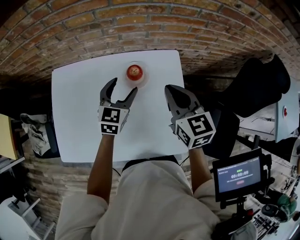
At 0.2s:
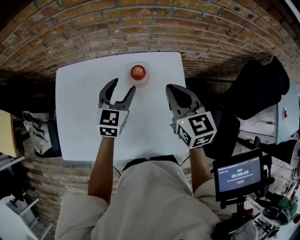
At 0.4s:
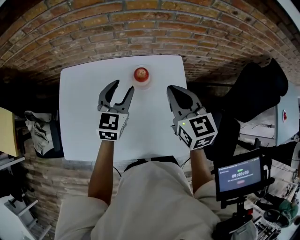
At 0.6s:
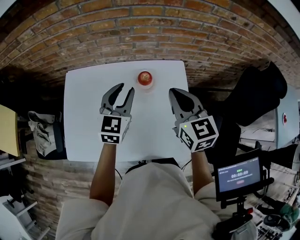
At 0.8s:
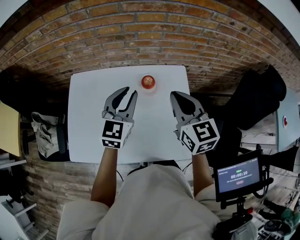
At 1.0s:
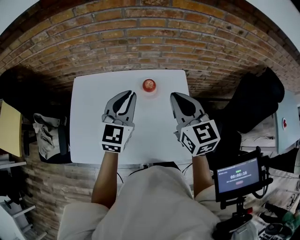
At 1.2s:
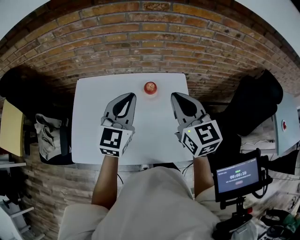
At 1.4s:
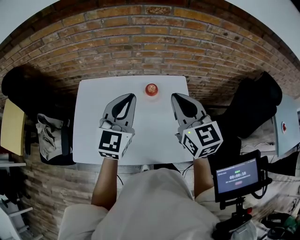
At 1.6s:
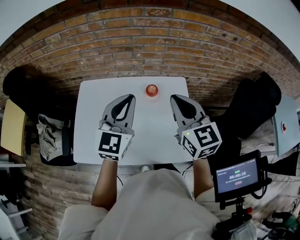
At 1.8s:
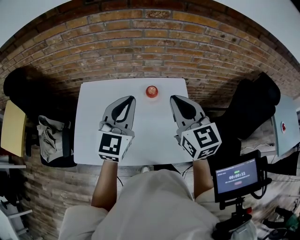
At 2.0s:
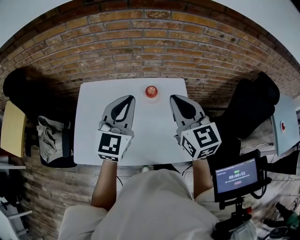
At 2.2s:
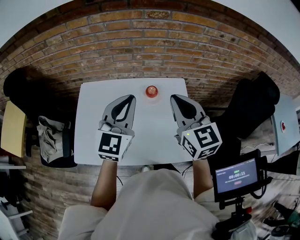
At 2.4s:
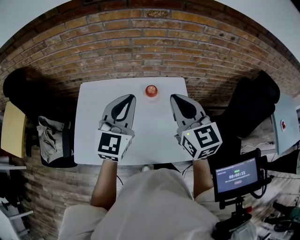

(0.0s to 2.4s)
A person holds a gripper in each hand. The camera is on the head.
0.0s - 1.2s: The right gripper goes some 15 cm upward and backward. The left gripper moves upward and backward, about 25 cm, and closes up.
1.2s - 2.4s: The left gripper changes place by about 5 cm.

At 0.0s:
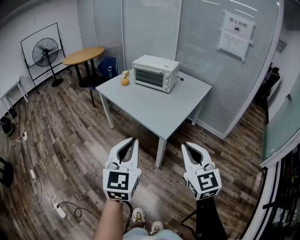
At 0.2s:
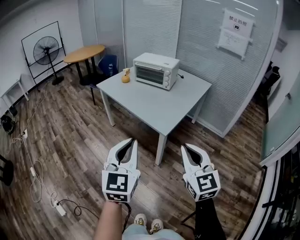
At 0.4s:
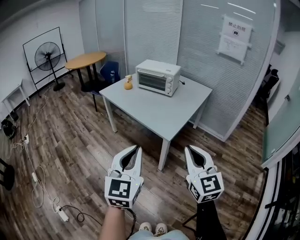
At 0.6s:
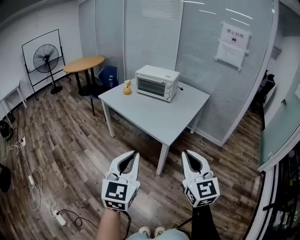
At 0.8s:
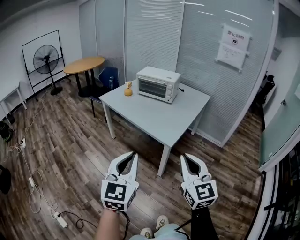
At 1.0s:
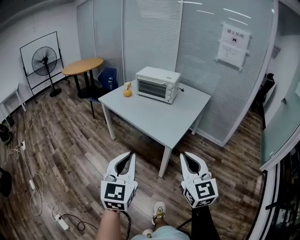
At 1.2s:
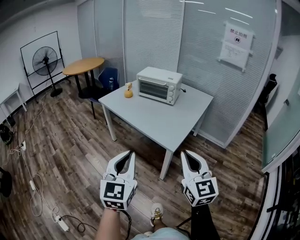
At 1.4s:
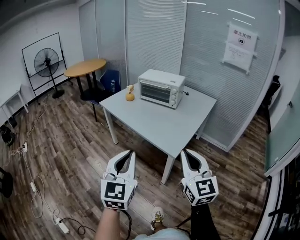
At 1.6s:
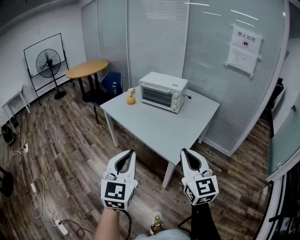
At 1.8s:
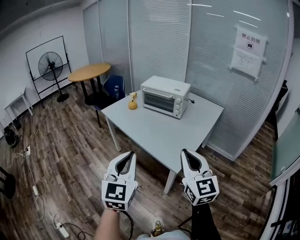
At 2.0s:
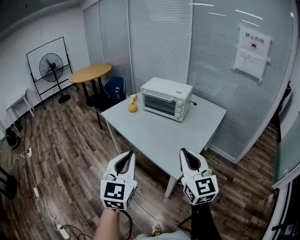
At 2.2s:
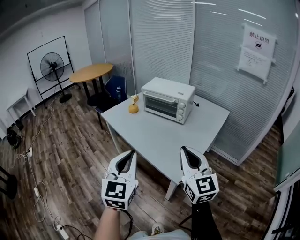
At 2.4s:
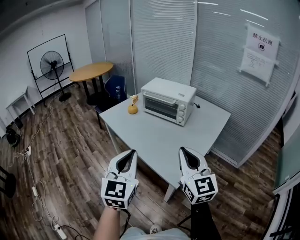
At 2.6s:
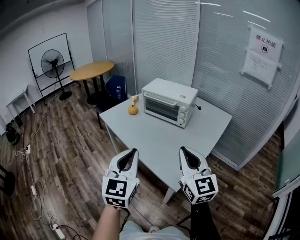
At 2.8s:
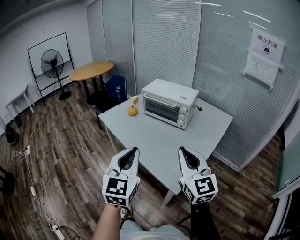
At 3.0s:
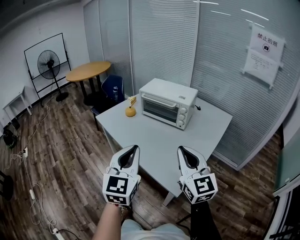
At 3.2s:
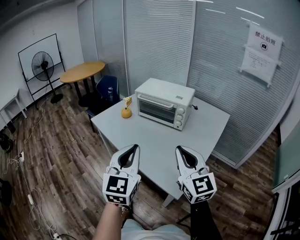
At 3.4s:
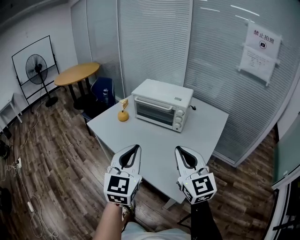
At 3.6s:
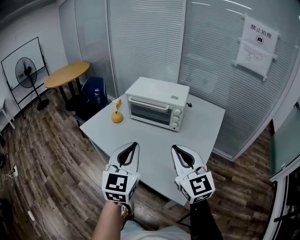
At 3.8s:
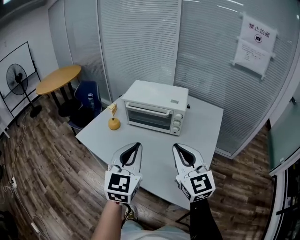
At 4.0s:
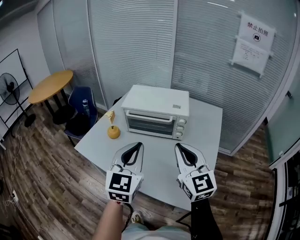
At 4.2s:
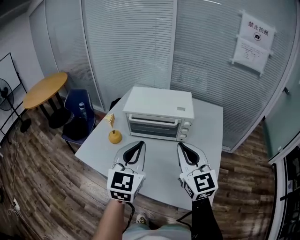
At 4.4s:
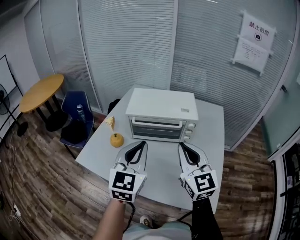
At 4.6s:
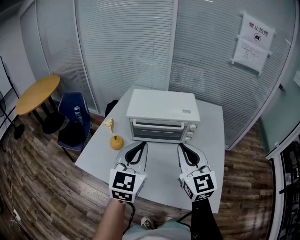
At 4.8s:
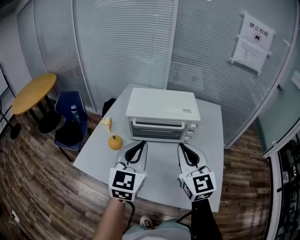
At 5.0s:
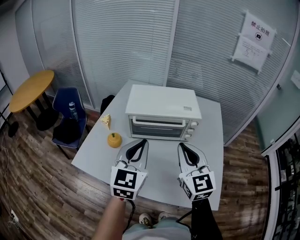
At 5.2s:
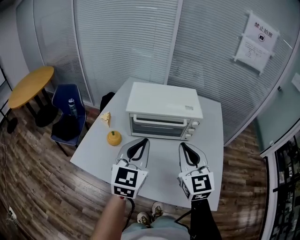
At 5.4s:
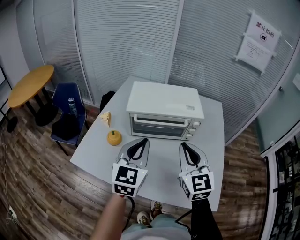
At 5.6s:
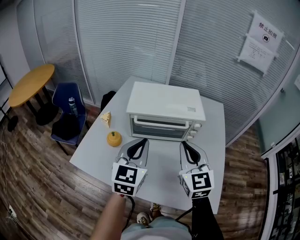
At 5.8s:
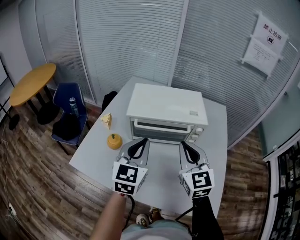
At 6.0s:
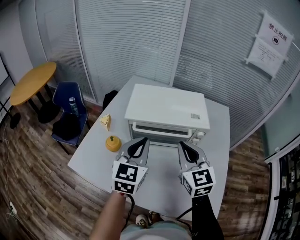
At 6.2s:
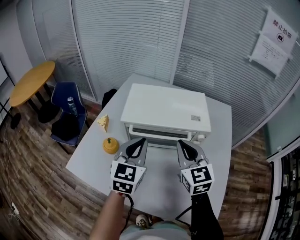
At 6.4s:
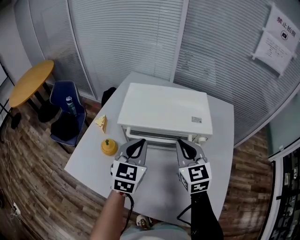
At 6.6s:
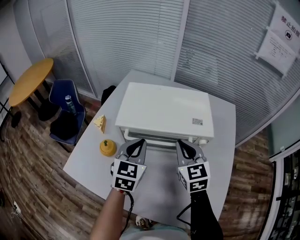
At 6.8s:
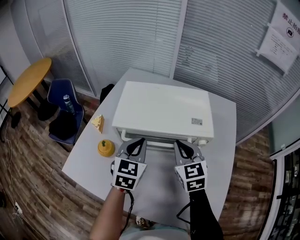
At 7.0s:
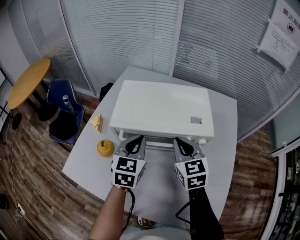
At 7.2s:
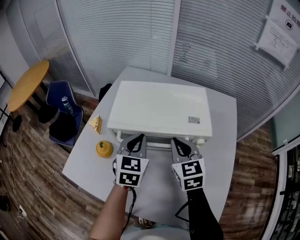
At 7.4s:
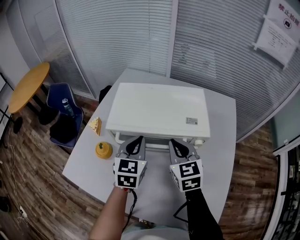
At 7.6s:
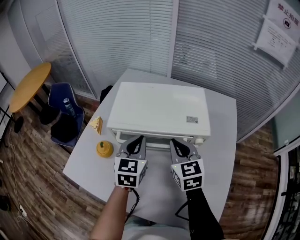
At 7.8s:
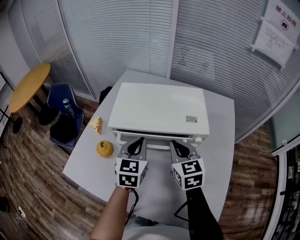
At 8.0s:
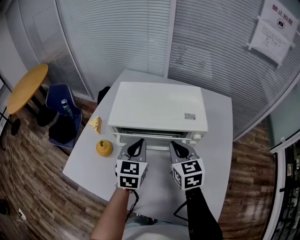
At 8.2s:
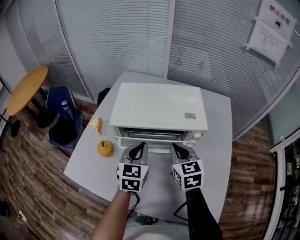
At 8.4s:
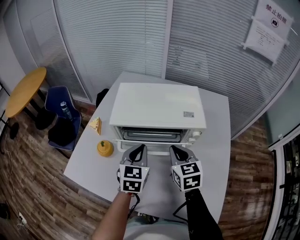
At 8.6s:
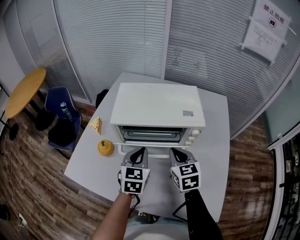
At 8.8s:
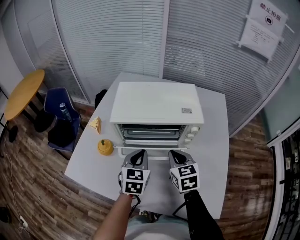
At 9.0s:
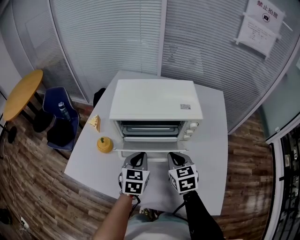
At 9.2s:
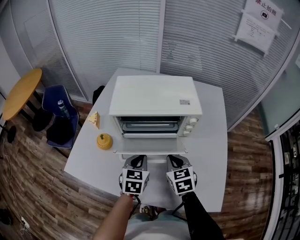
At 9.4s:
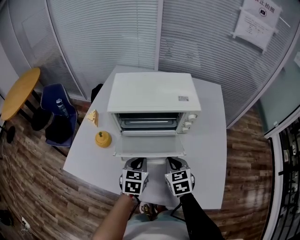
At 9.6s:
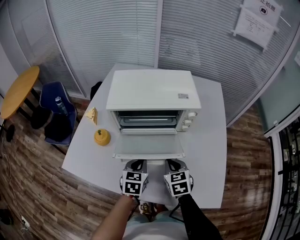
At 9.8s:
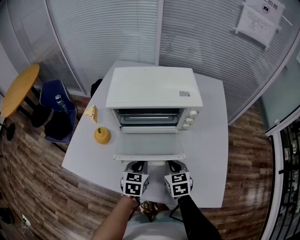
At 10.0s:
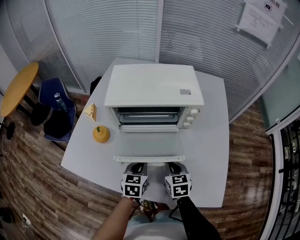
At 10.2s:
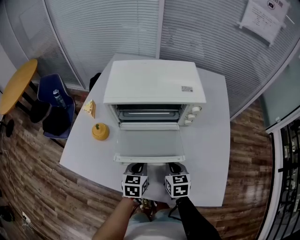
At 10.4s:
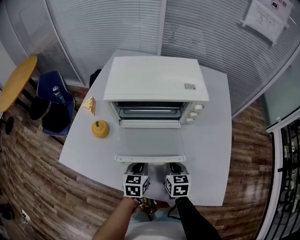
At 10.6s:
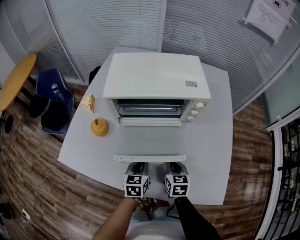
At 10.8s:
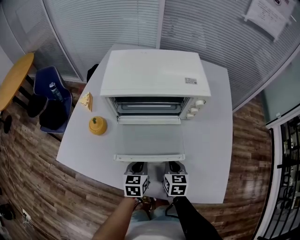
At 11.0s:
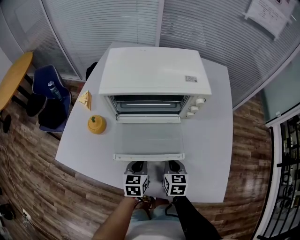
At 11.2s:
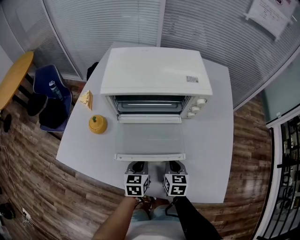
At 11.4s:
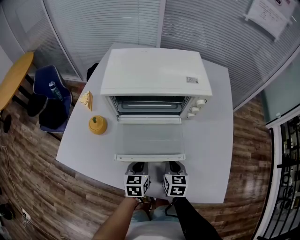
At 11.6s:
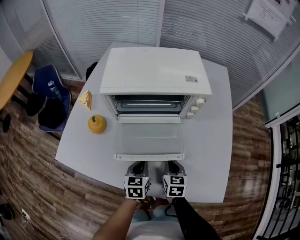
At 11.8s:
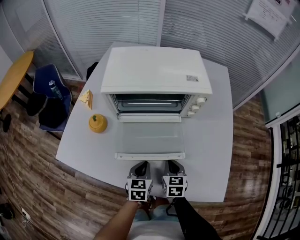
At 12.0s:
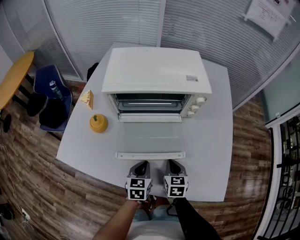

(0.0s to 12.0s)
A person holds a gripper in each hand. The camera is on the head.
0.0s - 1.6s: The grippers both shift forward and to the left by approximately 15 cm.
1.6s - 3.0s: The two grippers go some 25 cm forward.
3.0s - 4.4s: The right gripper ends up roughly 30 cm from where it was, and turns by approximately 20 degrees. Meanwhile the left gripper moves some 35 cm, and swivels about 30 degrees.
4.4s - 6.0s: Both grippers travel together forward and downward, about 15 cm.
6.0s - 7.6s: The grippers both shift forward and downward by approximately 15 cm.
7.6s - 9.0s: The two grippers go some 10 cm backward and downward.
9.0s - 10.4s: Both grippers travel together downward and backward, some 15 cm.
10.4s - 12.0s: The grippers stay close to where they were, moving slightly.

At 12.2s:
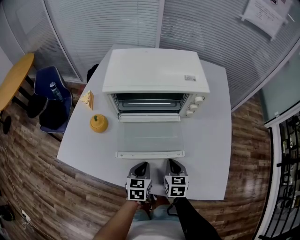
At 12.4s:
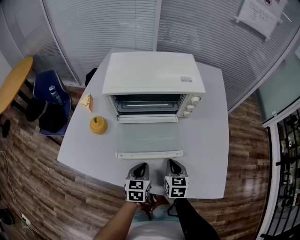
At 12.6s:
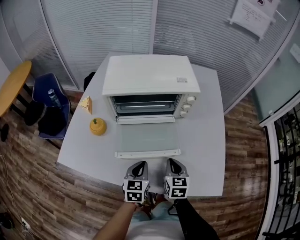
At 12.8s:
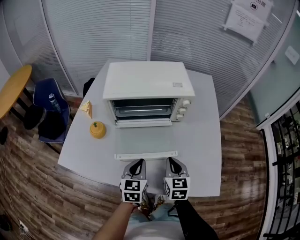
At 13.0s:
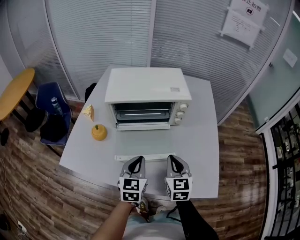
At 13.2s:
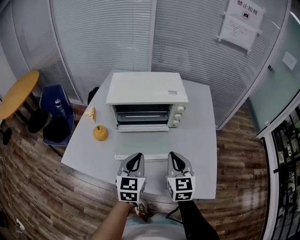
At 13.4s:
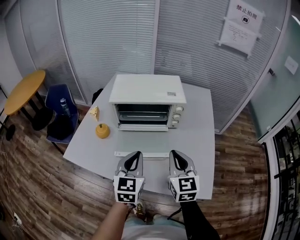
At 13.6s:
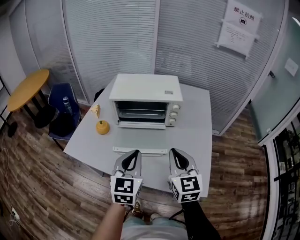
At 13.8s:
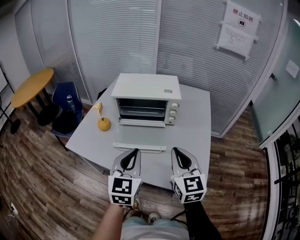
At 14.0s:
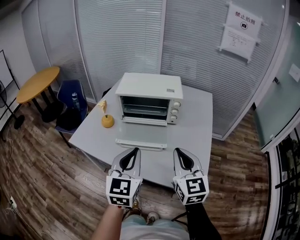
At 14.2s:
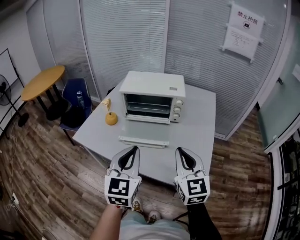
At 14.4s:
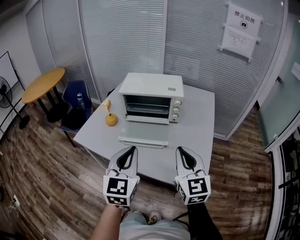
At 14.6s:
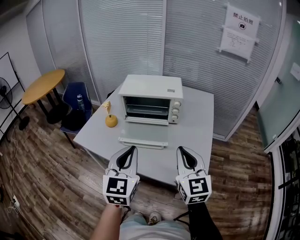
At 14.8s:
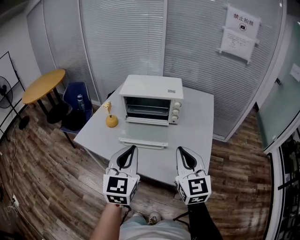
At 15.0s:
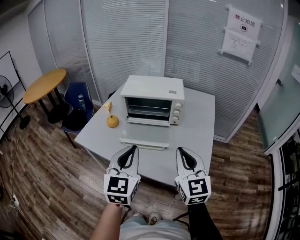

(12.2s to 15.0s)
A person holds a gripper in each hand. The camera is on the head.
12.2s - 13.6s: The grippers both shift upward by approximately 30 cm. The left gripper swivels some 30 degrees. The right gripper tips its fingers upward by about 30 degrees.
13.6s - 15.0s: The two grippers go about 10 cm backward and upward.

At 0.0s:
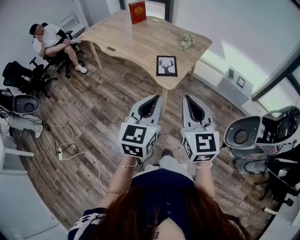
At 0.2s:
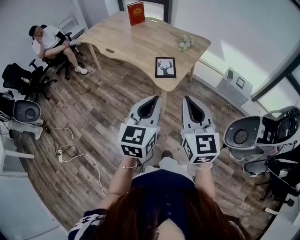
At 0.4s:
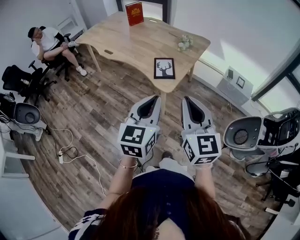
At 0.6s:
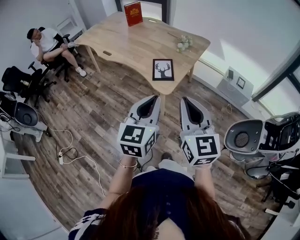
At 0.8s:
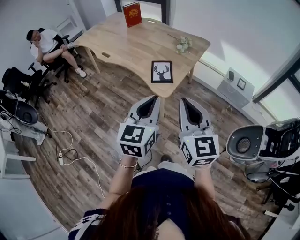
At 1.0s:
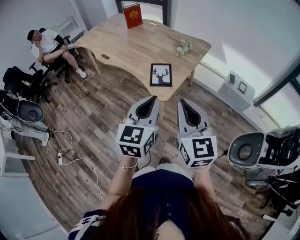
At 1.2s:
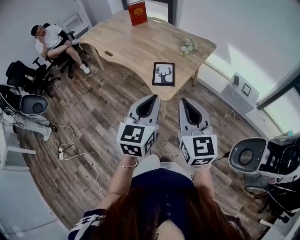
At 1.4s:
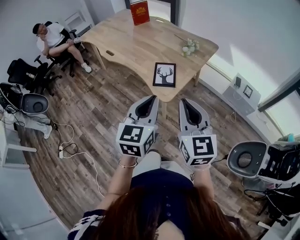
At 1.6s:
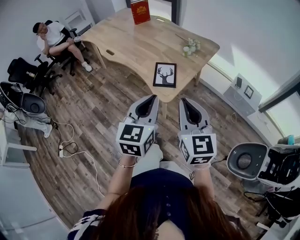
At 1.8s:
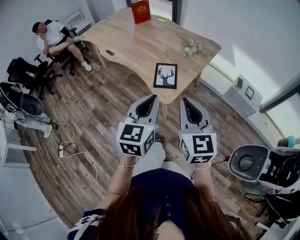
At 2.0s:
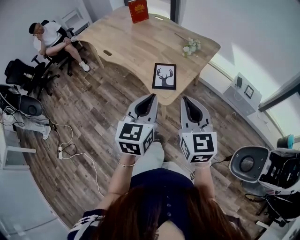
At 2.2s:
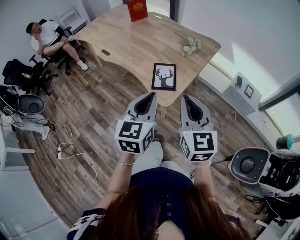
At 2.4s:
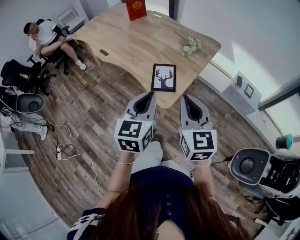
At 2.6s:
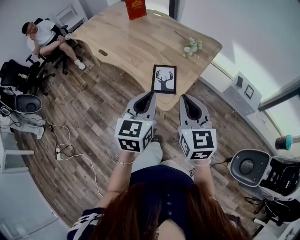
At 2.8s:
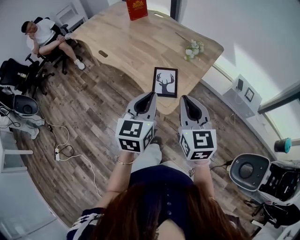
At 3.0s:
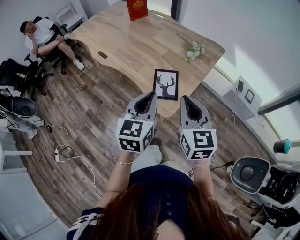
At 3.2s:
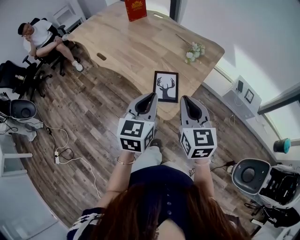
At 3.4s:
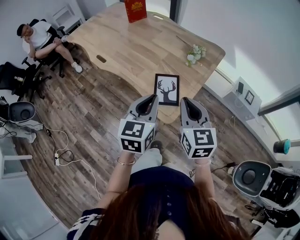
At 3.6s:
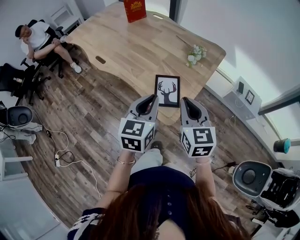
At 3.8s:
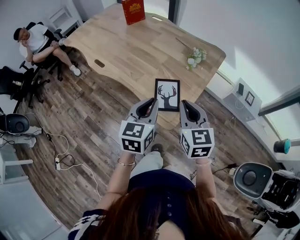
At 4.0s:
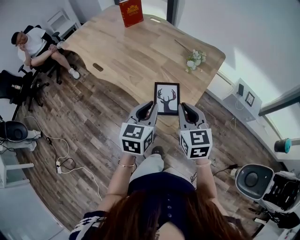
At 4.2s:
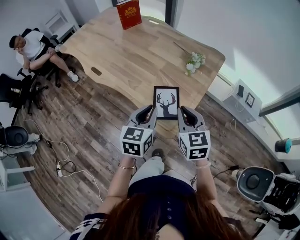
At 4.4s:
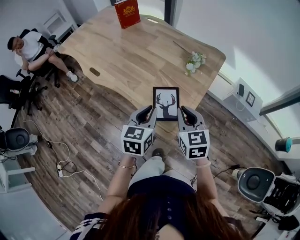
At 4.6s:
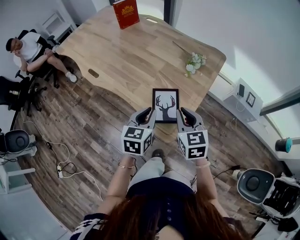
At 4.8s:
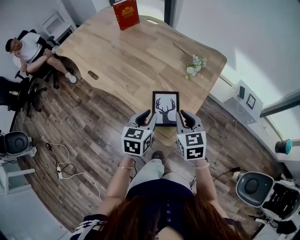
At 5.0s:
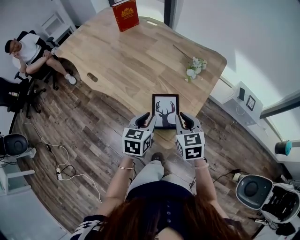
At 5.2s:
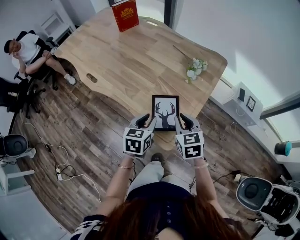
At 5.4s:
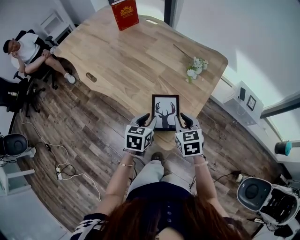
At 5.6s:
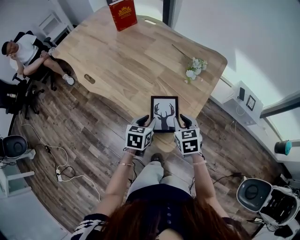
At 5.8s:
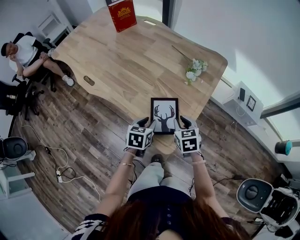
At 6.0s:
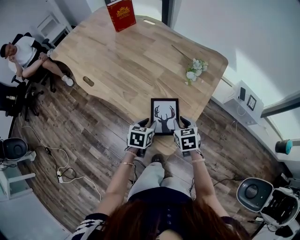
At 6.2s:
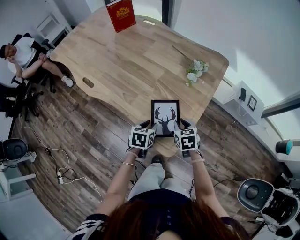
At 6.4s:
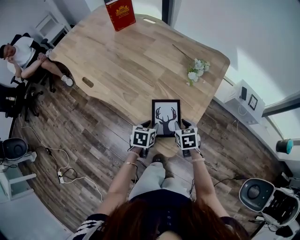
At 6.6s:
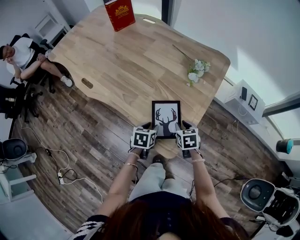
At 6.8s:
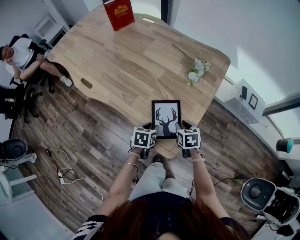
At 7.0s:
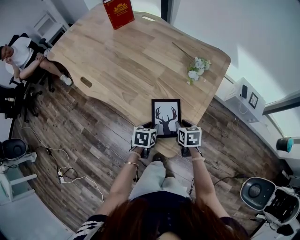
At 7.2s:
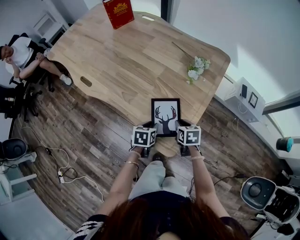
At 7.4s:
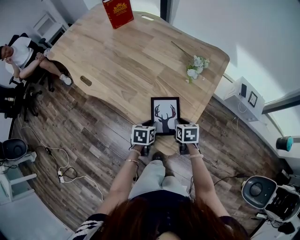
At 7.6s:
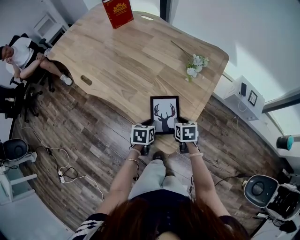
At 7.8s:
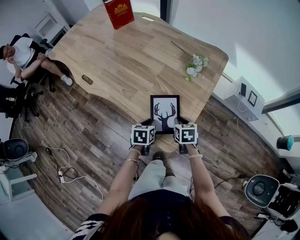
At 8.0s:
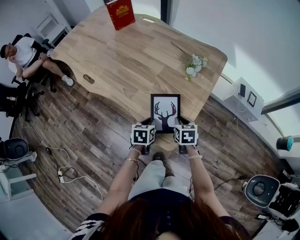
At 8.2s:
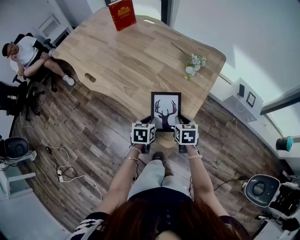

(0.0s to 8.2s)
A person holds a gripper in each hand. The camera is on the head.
0.0s - 1.6s: The two grippers go about 10 cm forward.
1.6s - 3.2s: The grippers both shift forward by roughly 15 cm.
3.2s - 5.0s: Both grippers move downward and forward, about 20 cm.
5.0s - 6.6s: Both grippers move downward, approximately 15 cm. The left gripper turns by some 20 degrees; the right gripper turns by roughly 20 degrees.
6.6s - 8.2s: The grippers move only a little.
